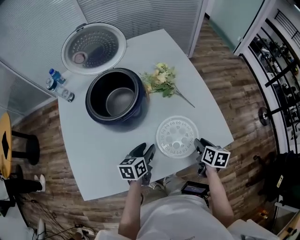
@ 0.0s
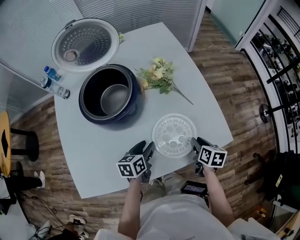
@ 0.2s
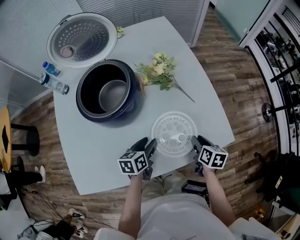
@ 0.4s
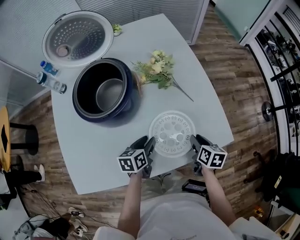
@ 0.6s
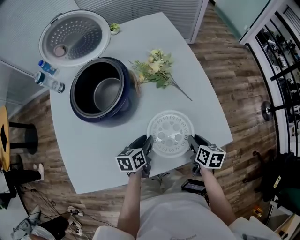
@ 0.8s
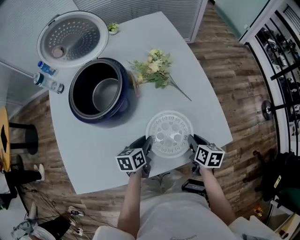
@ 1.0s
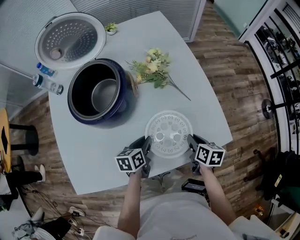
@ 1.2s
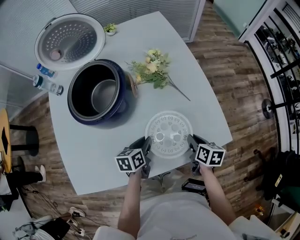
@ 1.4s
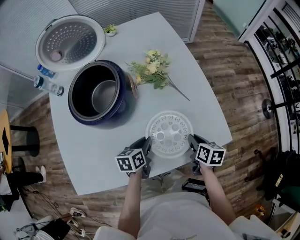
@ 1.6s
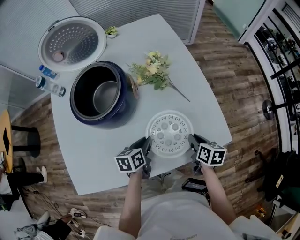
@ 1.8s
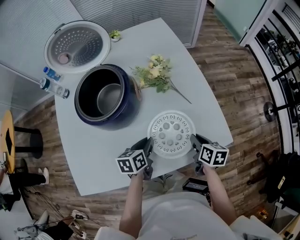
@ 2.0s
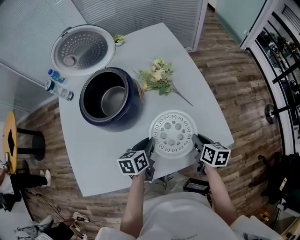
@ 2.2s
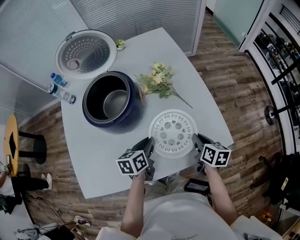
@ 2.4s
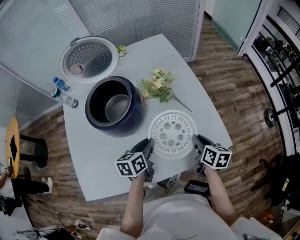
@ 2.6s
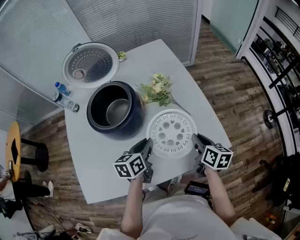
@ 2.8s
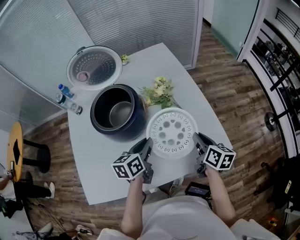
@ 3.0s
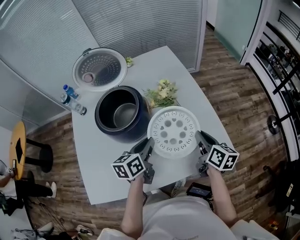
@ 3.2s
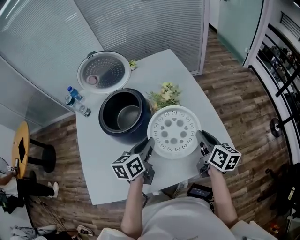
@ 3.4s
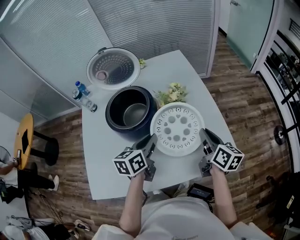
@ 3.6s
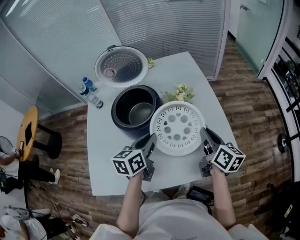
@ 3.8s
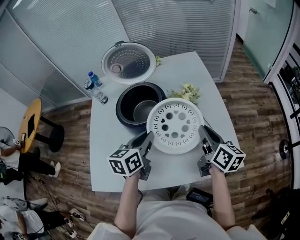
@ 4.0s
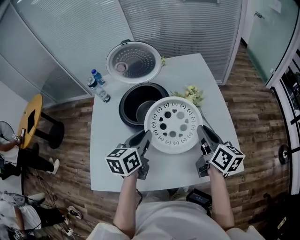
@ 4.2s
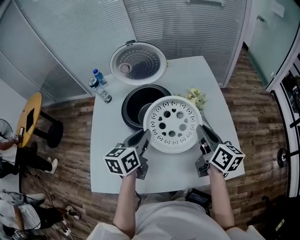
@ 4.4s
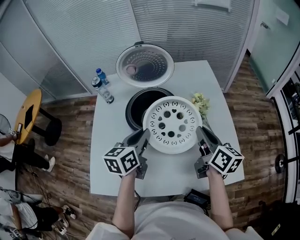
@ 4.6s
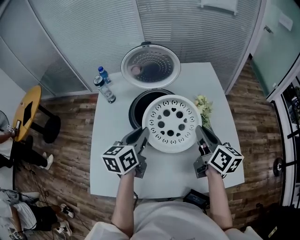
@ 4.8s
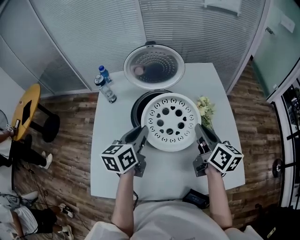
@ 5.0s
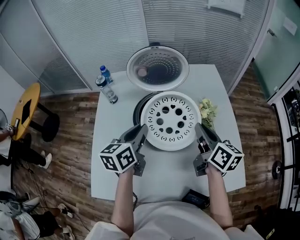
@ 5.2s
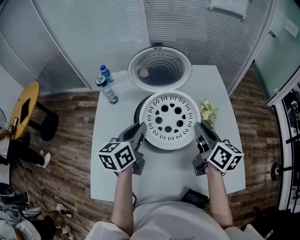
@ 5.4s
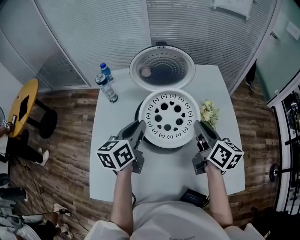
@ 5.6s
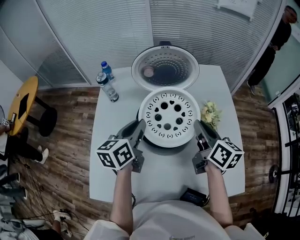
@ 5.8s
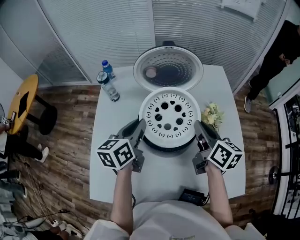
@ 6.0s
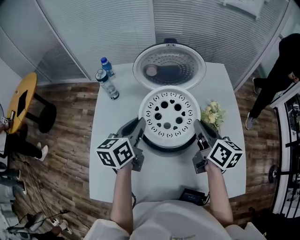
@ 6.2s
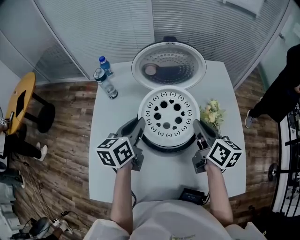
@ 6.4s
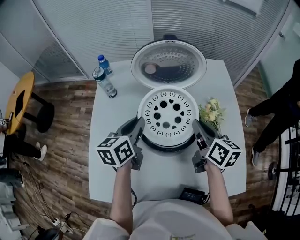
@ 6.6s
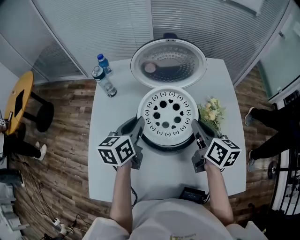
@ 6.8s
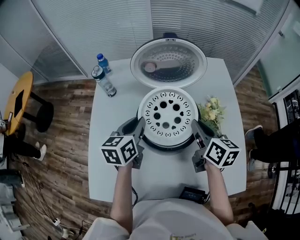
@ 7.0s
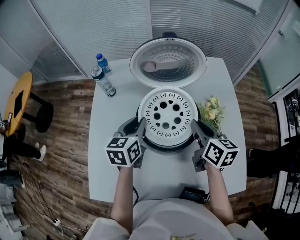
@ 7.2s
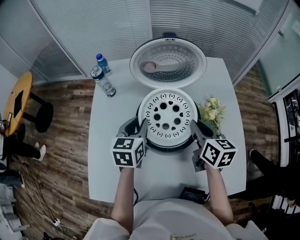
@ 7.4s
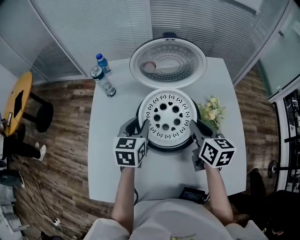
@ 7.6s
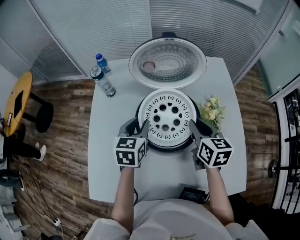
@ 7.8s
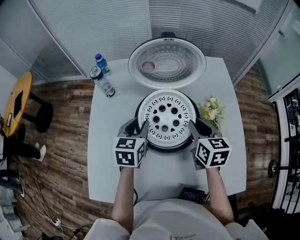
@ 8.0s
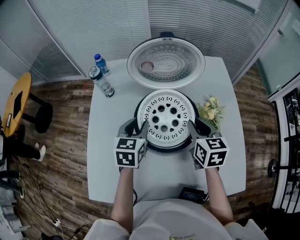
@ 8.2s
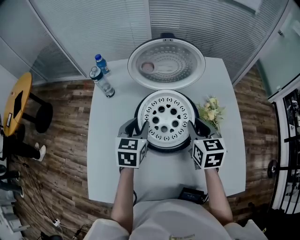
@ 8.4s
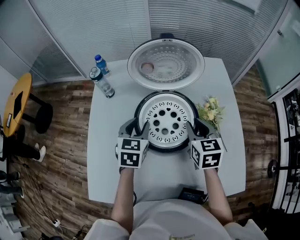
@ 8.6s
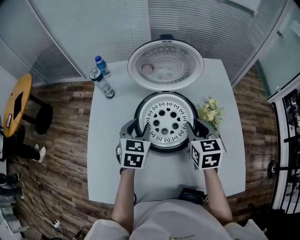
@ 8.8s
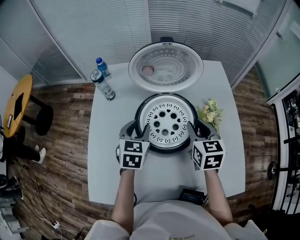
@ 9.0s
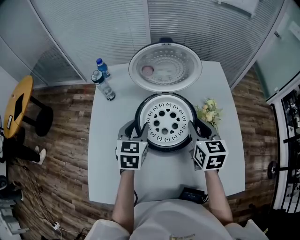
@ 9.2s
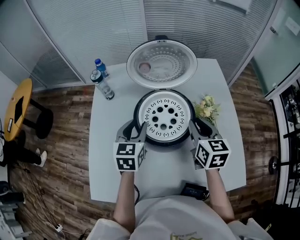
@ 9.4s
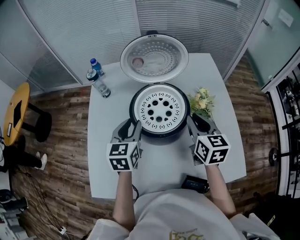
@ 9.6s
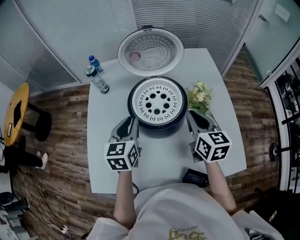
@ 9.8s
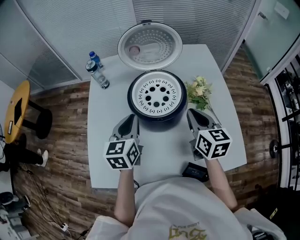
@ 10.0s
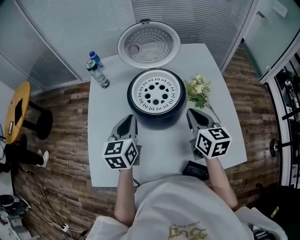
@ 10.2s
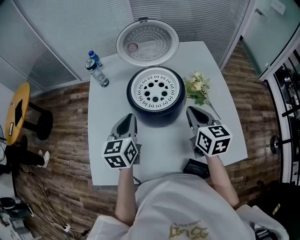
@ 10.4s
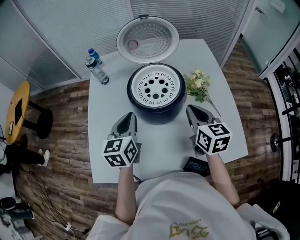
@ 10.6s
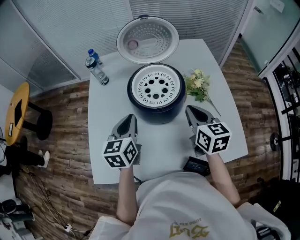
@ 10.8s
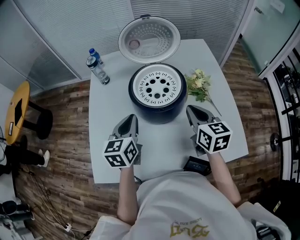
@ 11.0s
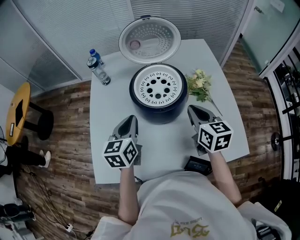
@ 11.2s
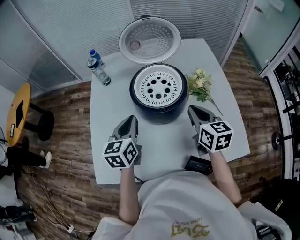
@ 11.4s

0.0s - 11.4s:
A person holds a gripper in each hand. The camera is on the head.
0.0s - 1.4s: The left gripper shifts approximately 5 cm downward, and closes.
1.4s - 2.8s: The grippers both shift upward by roughly 15 cm.
2.8s - 4.2s: The right gripper shifts approximately 20 cm upward, to the left and forward, and swivels some 20 degrees. The left gripper heads upward and to the left, covering some 15 cm.
4.2s - 5.6s: Both grippers travel together to the left and forward, some 15 cm.
5.6s - 7.2s: Both grippers move downward, some 5 cm.
7.2s - 8.6s: The right gripper swivels some 30 degrees. Meanwhile the left gripper swivels approximately 20 degrees, and opens up.
8.6s - 10.0s: The left gripper shifts some 10 cm backward and upward, and closes up. Meanwhile the right gripper is displaced backward by some 10 cm.
10.0s - 11.4s: The grippers stay close to where they were, moving slightly.

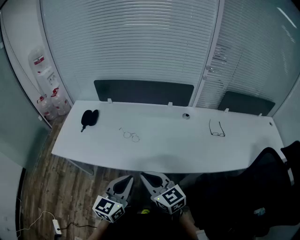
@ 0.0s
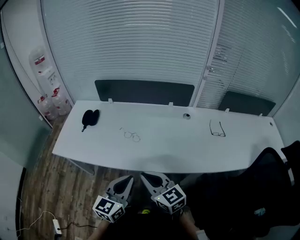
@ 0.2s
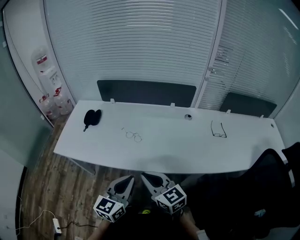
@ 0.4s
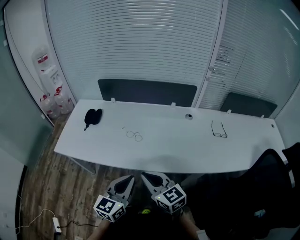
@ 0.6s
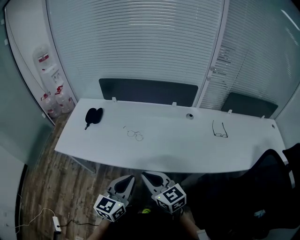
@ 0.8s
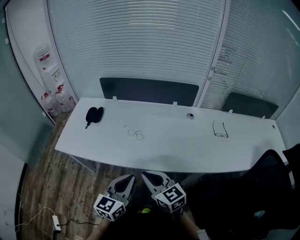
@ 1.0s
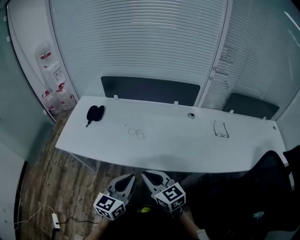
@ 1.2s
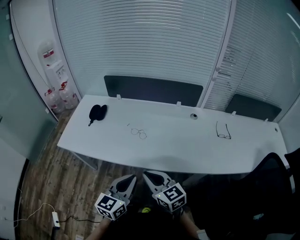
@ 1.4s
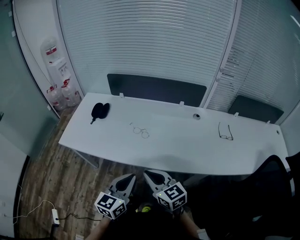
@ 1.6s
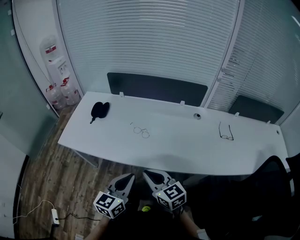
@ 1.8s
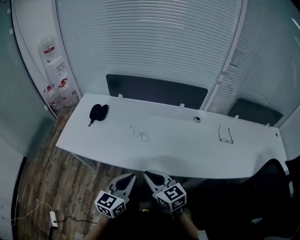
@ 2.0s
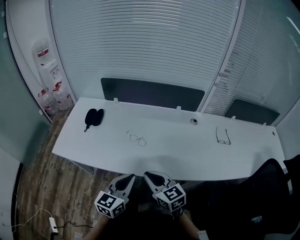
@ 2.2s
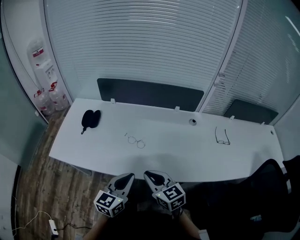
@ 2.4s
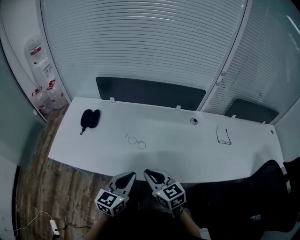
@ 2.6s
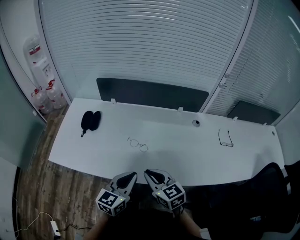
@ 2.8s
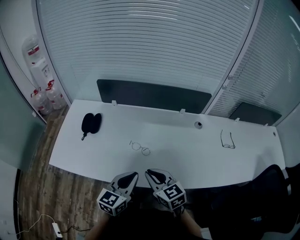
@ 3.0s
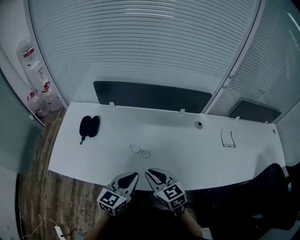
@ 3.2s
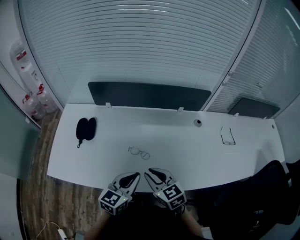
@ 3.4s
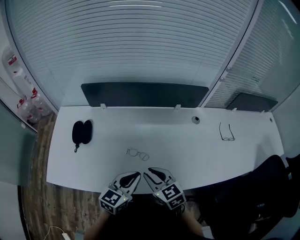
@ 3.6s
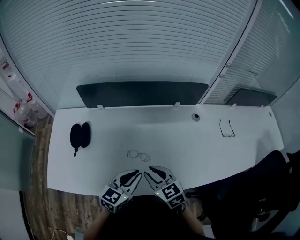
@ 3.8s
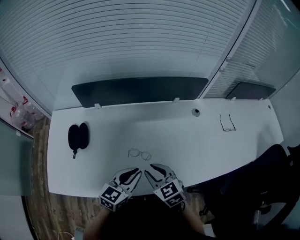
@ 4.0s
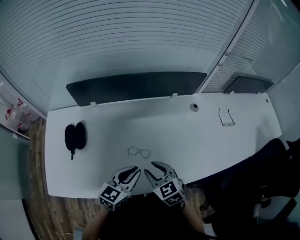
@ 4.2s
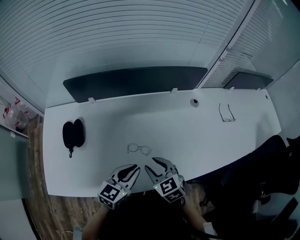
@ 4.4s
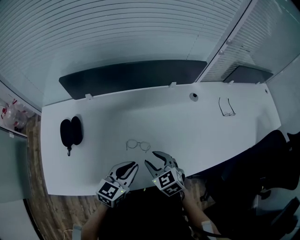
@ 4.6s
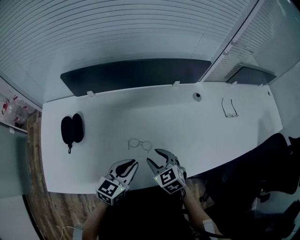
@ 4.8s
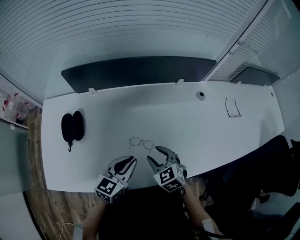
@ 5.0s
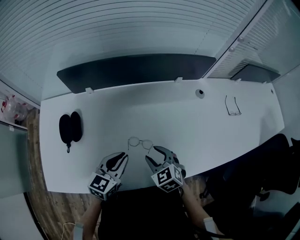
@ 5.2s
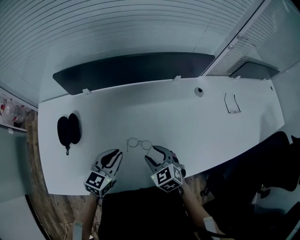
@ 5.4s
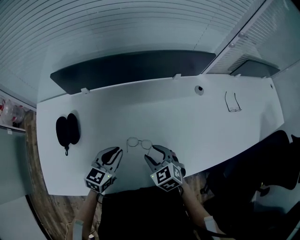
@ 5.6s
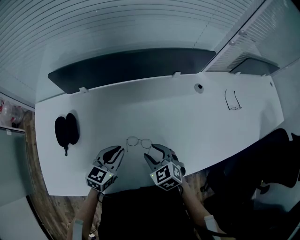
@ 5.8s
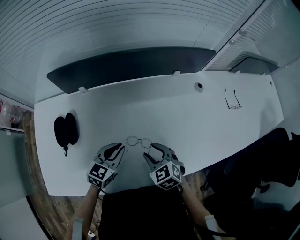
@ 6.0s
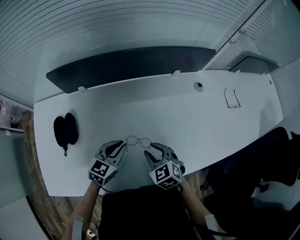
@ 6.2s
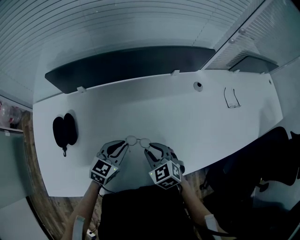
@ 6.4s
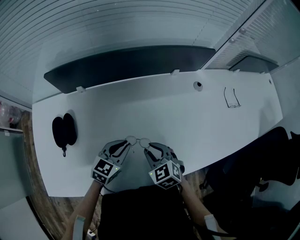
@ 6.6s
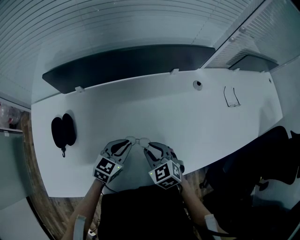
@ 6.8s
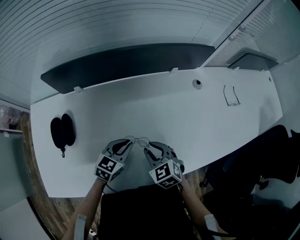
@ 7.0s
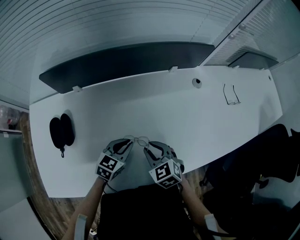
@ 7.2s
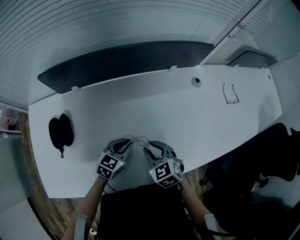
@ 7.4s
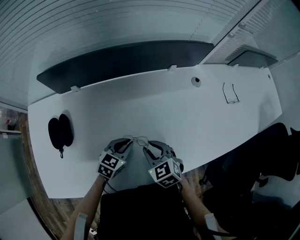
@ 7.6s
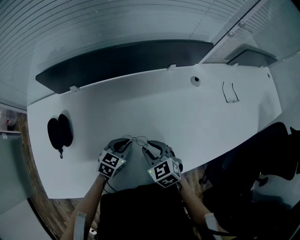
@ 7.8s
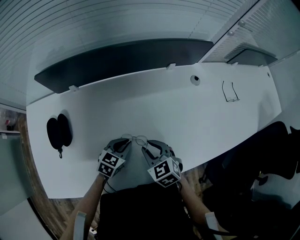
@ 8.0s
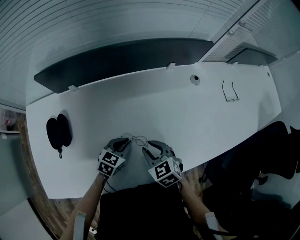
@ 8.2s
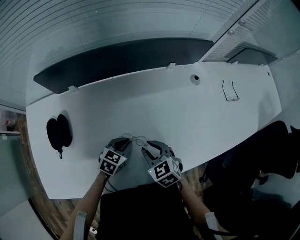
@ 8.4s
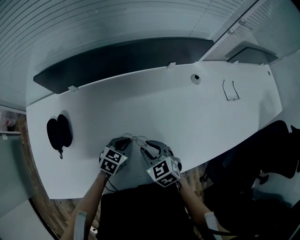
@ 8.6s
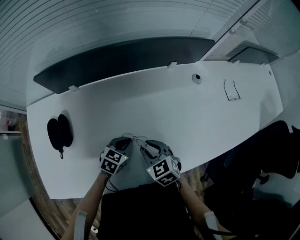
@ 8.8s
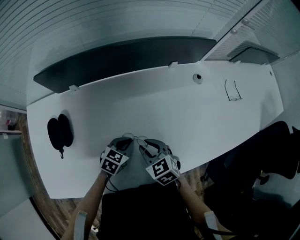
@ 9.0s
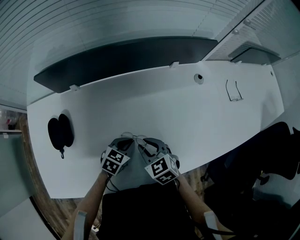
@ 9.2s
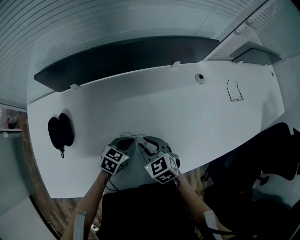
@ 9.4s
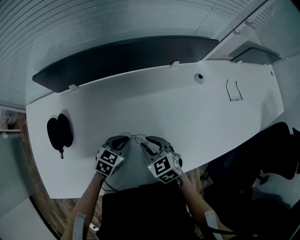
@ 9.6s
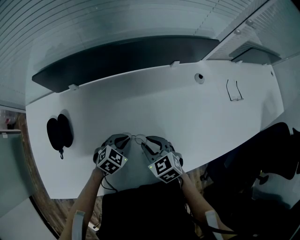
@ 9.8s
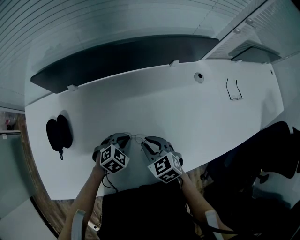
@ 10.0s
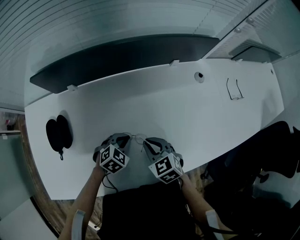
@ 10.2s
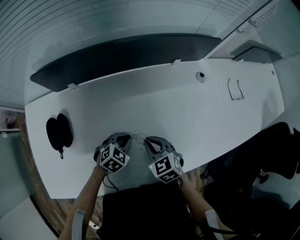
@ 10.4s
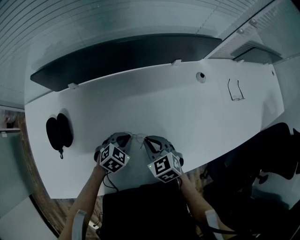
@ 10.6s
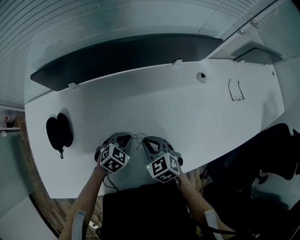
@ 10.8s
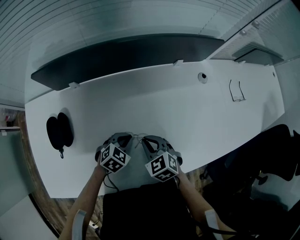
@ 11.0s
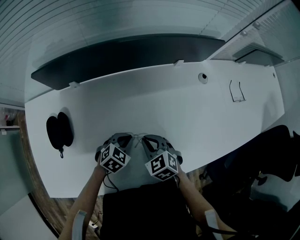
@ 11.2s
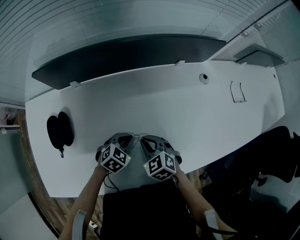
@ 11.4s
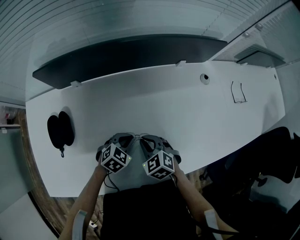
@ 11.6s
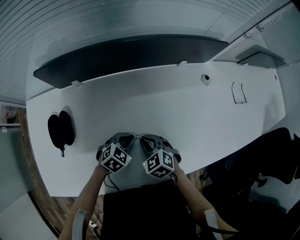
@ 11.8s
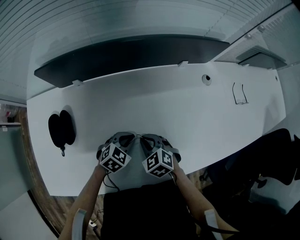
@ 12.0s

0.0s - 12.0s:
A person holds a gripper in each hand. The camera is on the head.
0.0s - 1.6s: The grippers make only small movements.
1.6s - 3.0s: The grippers both shift forward by roughly 15 cm.
3.0s - 4.4s: Both grippers travel together forward and downward, some 10 cm. The right gripper turns by approximately 20 degrees, and opens its fingers, while the left gripper rotates approximately 20 degrees.
4.4s - 6.0s: The right gripper is displaced downward by roughly 5 cm, while the left gripper moves forward, downward and to the left, approximately 10 cm.
6.0s - 7.6s: The left gripper goes about 5 cm downward.
7.6s - 9.0s: The grippers make only small movements.
9.0s - 10.4s: The left gripper changes its angle by approximately 20 degrees.
10.4s - 12.0s: The grippers move only a little.
